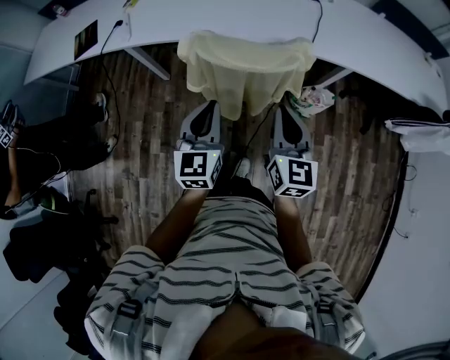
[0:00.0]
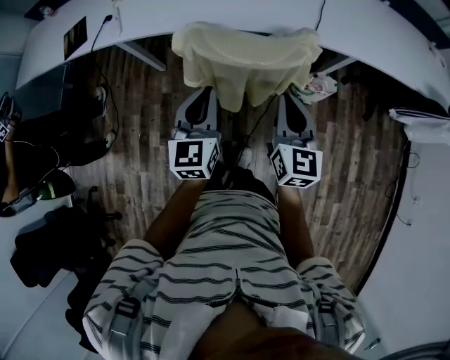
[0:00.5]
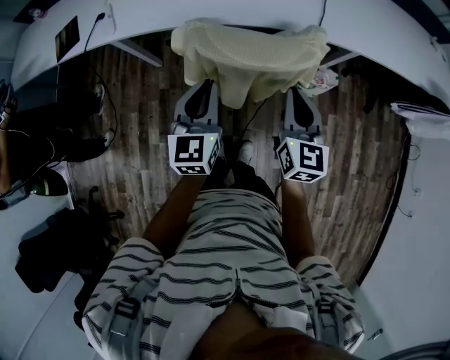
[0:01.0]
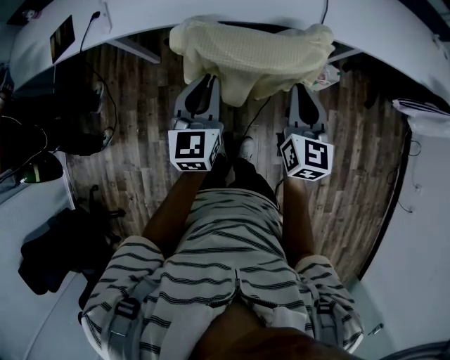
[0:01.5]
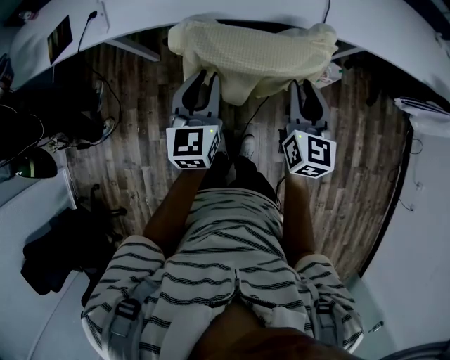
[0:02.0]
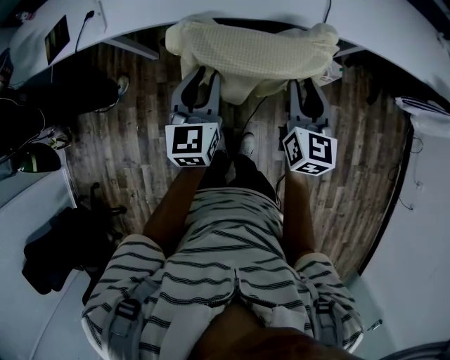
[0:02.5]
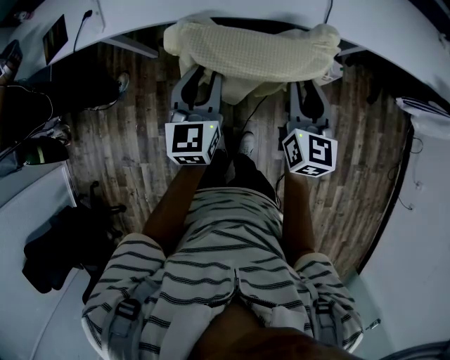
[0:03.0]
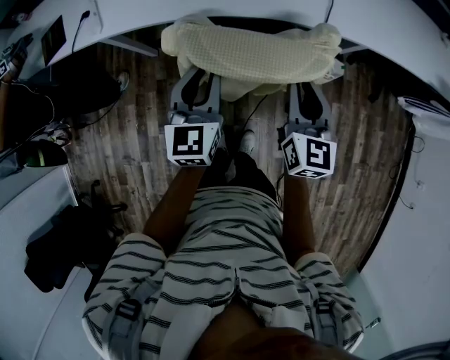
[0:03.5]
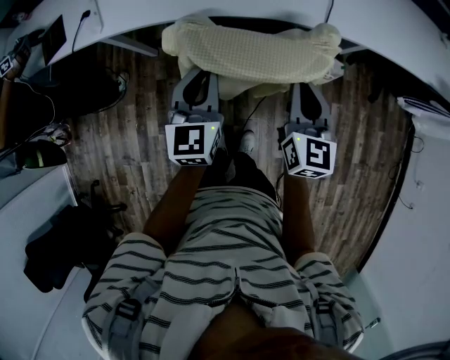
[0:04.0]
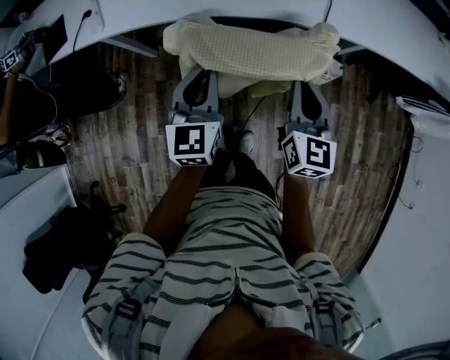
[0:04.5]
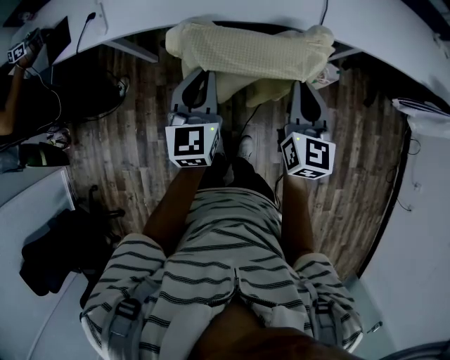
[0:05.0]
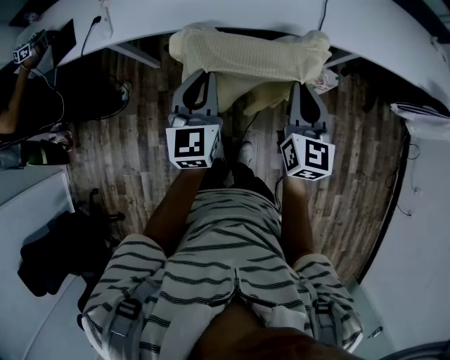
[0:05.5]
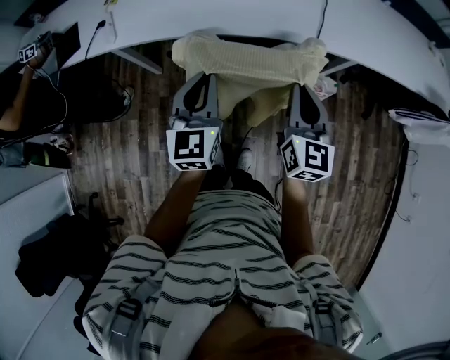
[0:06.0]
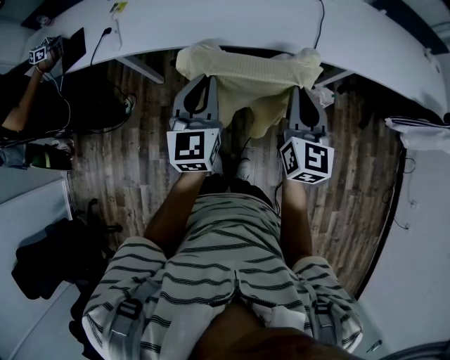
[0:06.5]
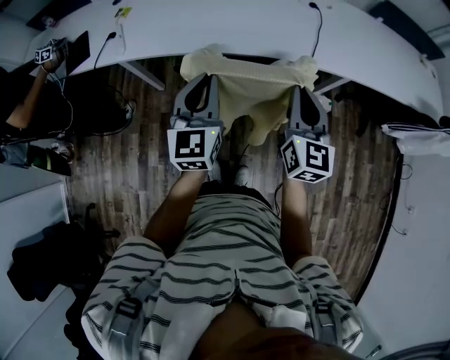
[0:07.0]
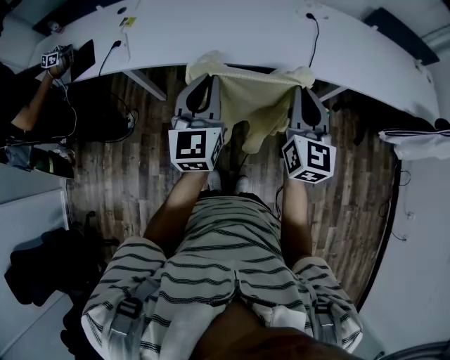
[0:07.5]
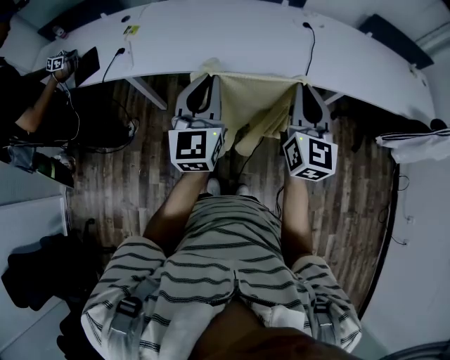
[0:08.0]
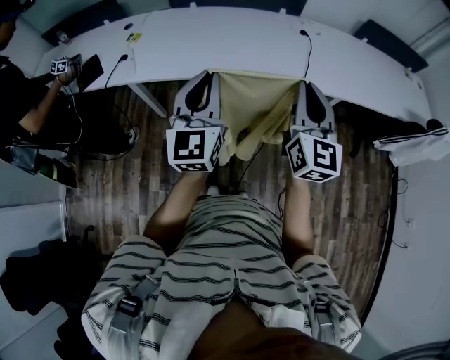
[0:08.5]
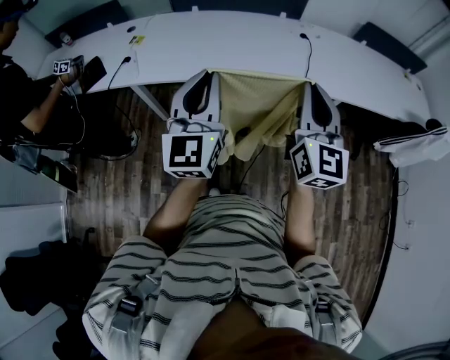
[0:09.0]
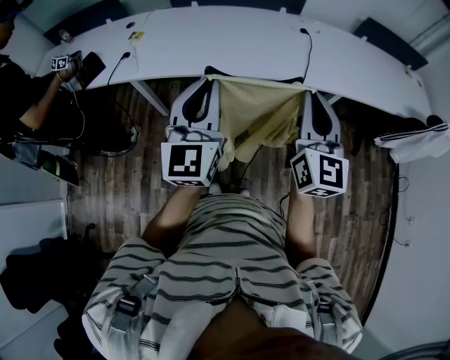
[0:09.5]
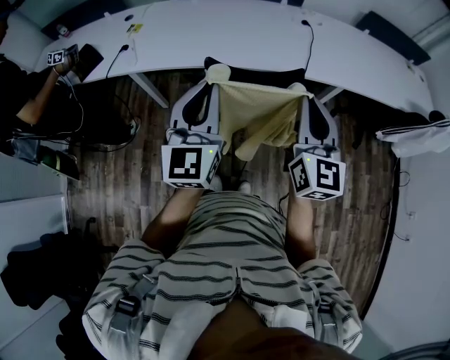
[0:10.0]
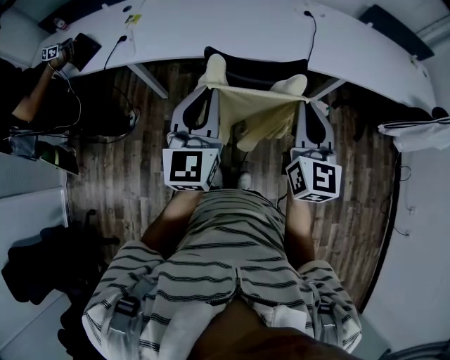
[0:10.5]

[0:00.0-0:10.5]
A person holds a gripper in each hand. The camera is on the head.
0.0 to 2.0 s: The right gripper moves forward and downward, about 10 cm, and opens its fingers. Meanwhile the left gripper moves forward, about 10 cm.
2.0 to 4.0 s: The grippers move only a little.
4.0 to 6.5 s: Both grippers travel together upward, approximately 10 cm.
6.5 to 8.5 s: The two grippers go roughly 15 cm upward.
8.5 to 10.5 s: The right gripper goes approximately 10 cm backward and downward. Meanwhile the left gripper travels backward by roughly 10 cm.

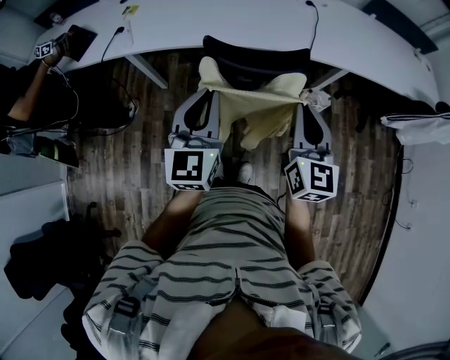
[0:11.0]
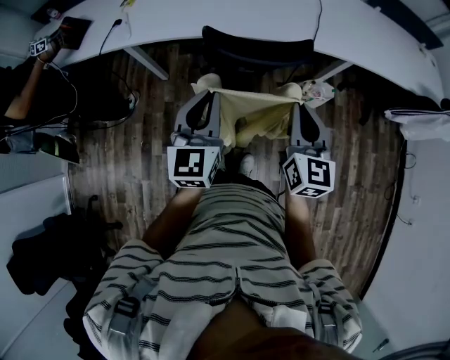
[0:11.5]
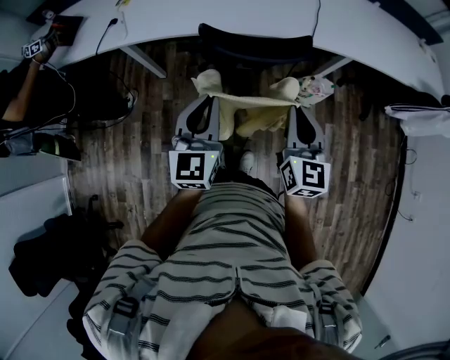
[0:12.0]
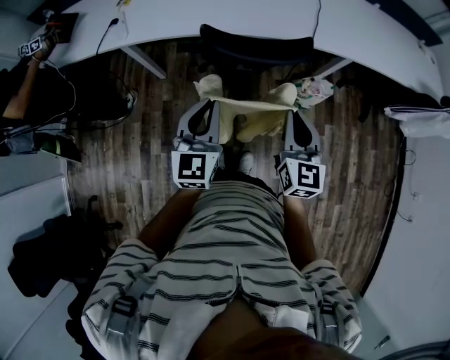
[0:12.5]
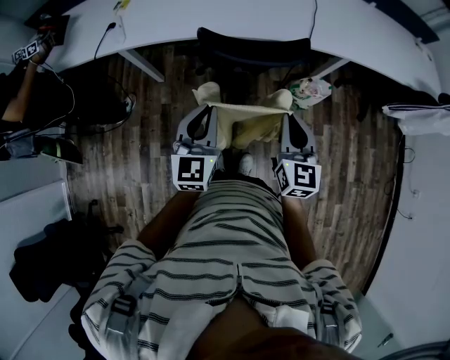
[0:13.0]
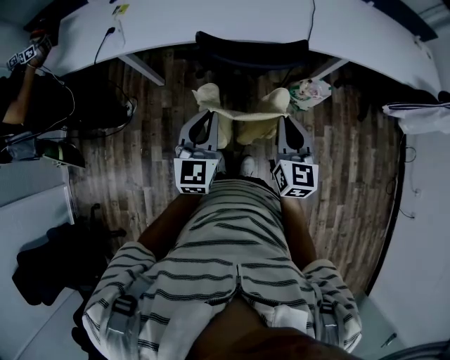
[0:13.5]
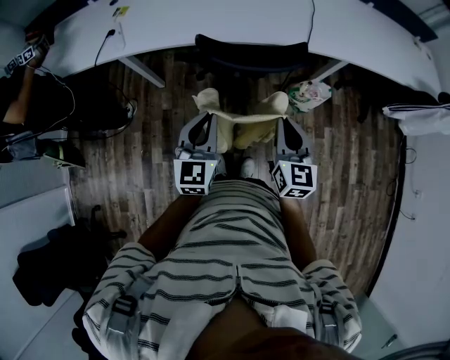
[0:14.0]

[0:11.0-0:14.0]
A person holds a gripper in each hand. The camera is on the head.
11.0 to 12.5 s: Both grippers travel together downward, approximately 10 cm.
12.5 to 14.0 s: The grippers move only a little.

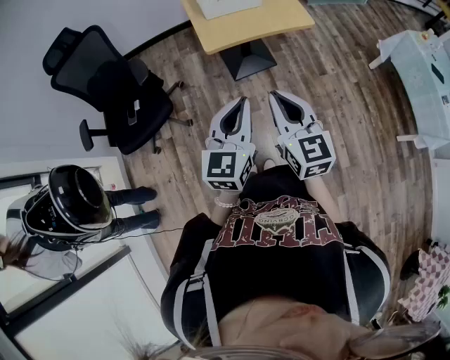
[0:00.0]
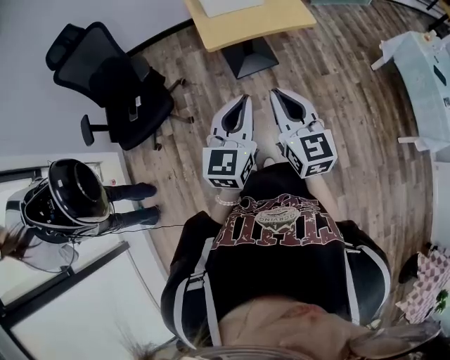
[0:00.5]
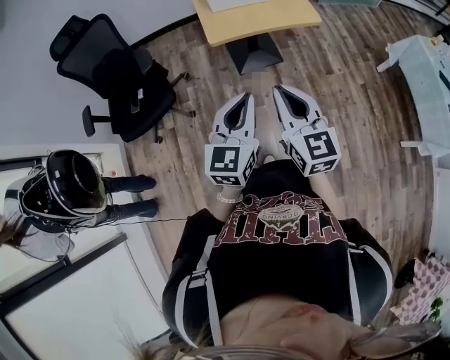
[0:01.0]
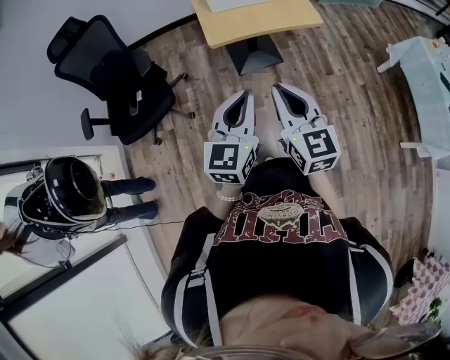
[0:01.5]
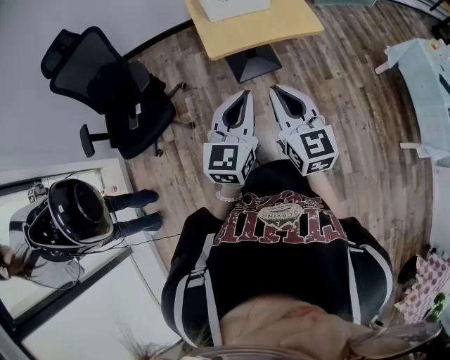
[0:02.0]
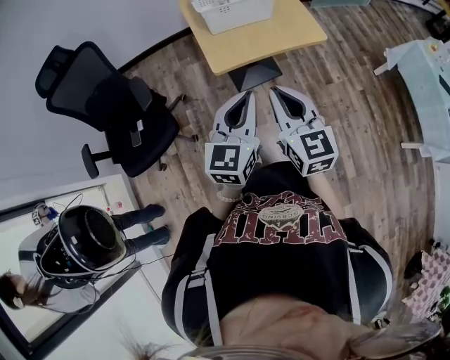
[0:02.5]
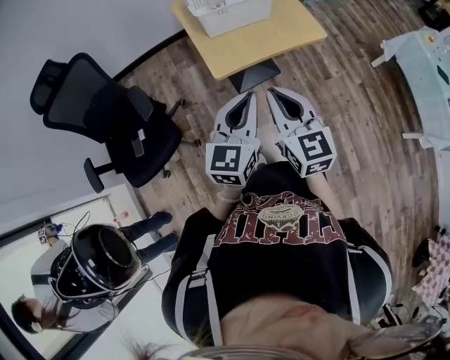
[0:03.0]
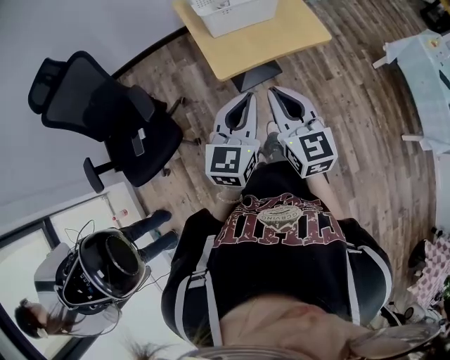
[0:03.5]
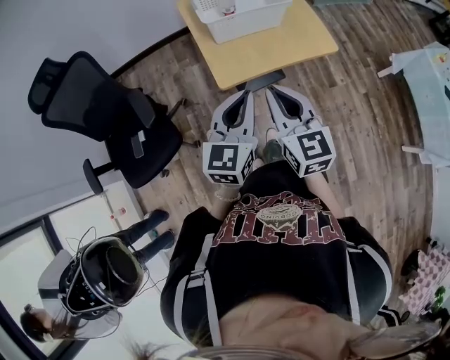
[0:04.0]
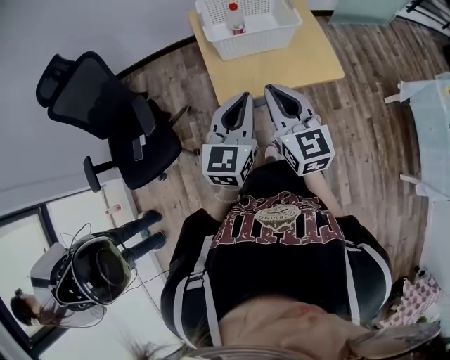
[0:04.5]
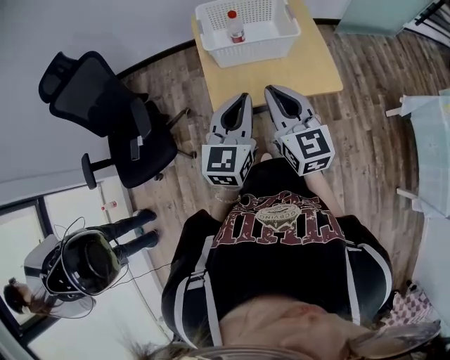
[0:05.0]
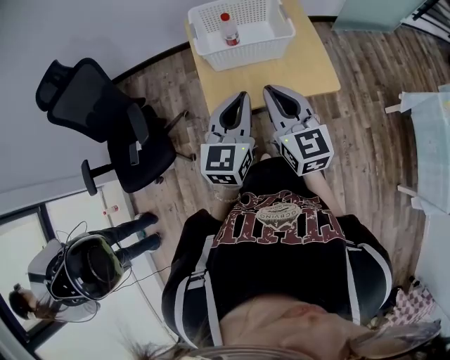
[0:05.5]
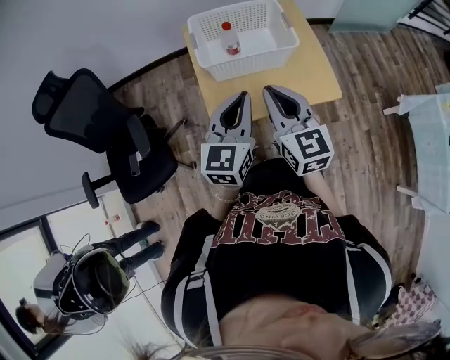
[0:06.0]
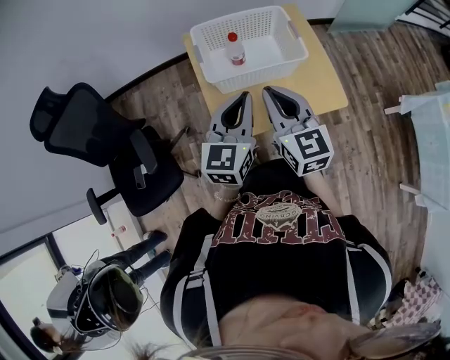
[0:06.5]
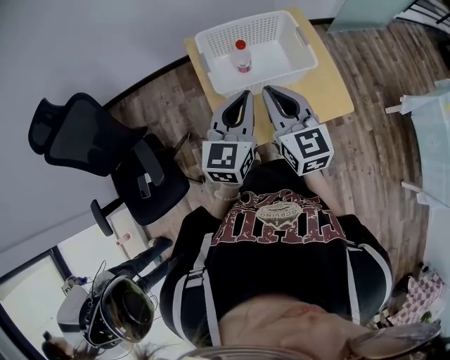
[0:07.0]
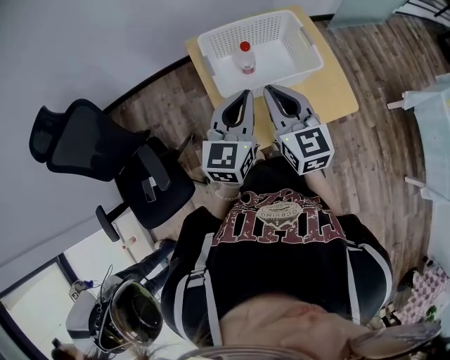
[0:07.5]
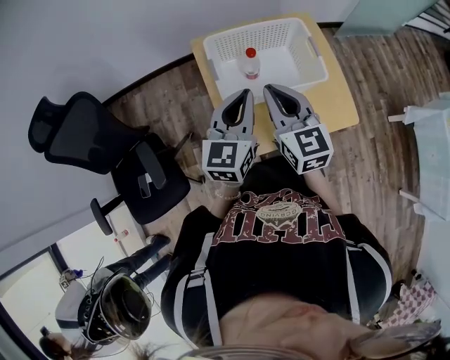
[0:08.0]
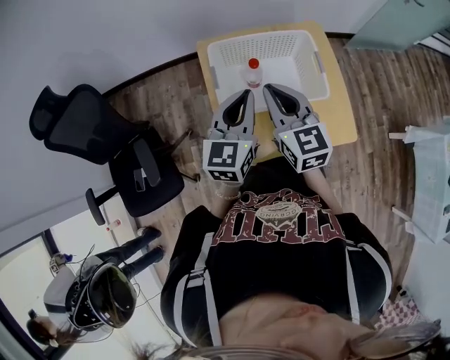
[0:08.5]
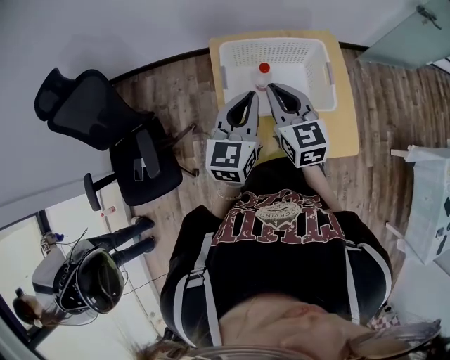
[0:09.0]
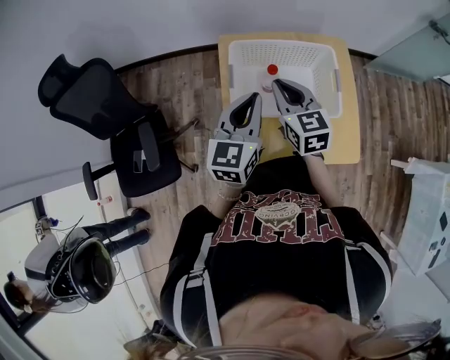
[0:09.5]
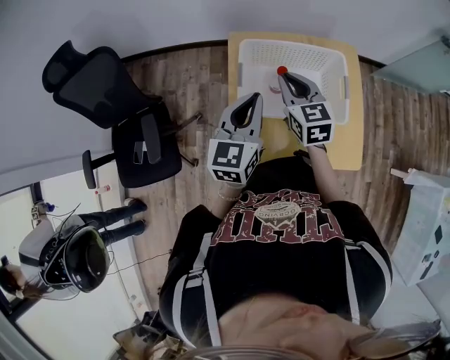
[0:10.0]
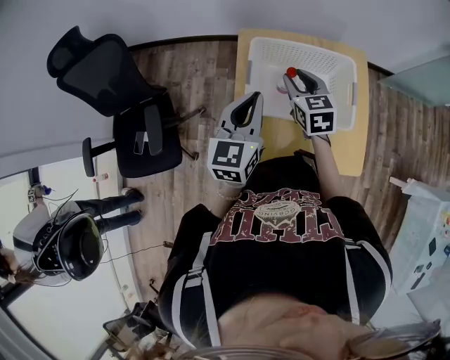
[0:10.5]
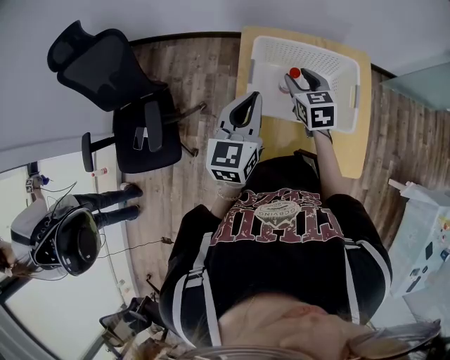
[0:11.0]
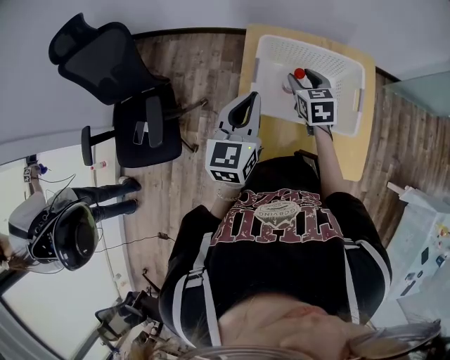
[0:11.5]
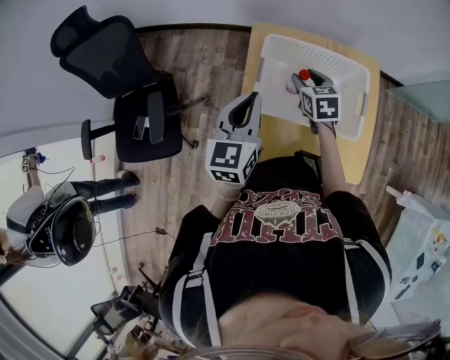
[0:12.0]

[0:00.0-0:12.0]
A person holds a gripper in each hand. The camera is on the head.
0.0 to 2.0 s: The two grippers go about 10 cm forward.
2.0 to 4.0 s: Both grippers travel together forward, approximately 20 cm.
4.0 to 6.0 s: The two grippers go about 15 cm forward.
6.0 to 8.0 s: Both grippers travel together forward and to the left, about 15 cm.
8.0 to 10.0 s: The right gripper travels forward and downward by about 15 cm.
10.0 to 12.0 s: The right gripper moves downward and forward, some 10 cm, and opens its fingers. Meanwhile the left gripper heads to the left, covering about 5 cm.

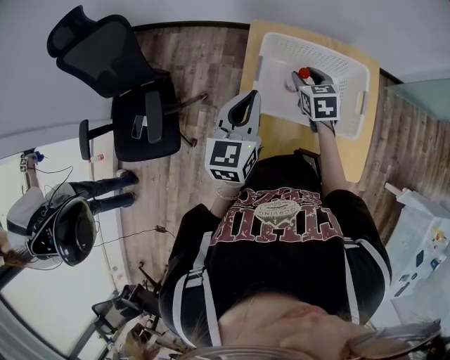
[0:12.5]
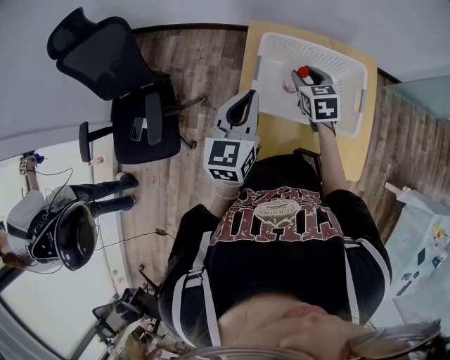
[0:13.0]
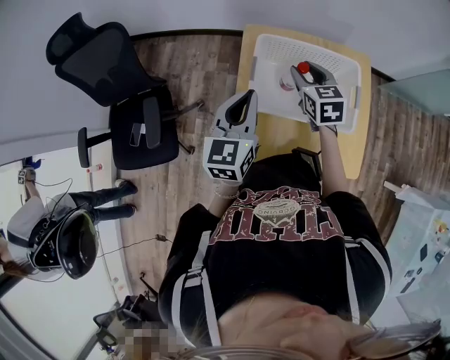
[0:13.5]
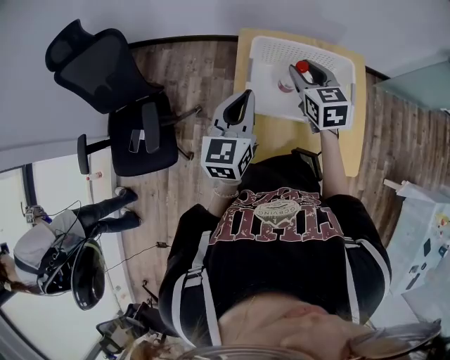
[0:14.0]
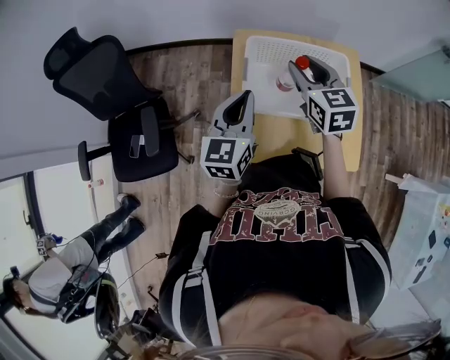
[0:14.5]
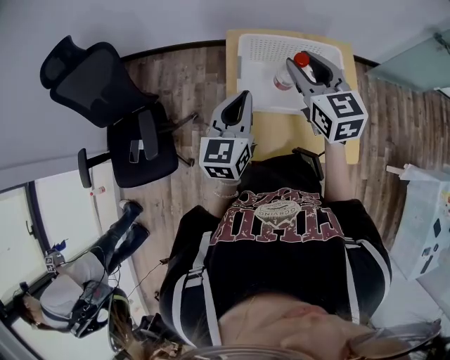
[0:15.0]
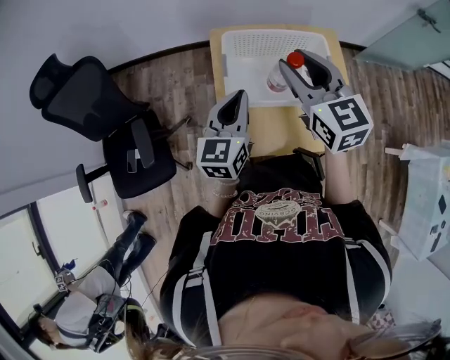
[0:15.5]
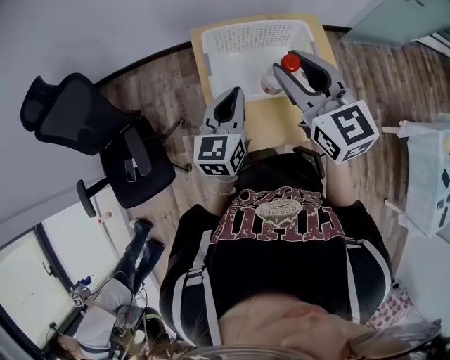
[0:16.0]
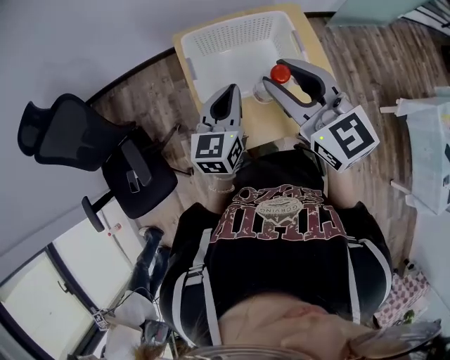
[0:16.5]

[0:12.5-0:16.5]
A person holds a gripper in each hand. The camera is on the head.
12.5 to 14.5 s: The right gripper shifts roughly 15 cm upward, and rotates about 20 degrees.
14.5 to 16.5 s: The left gripper heads to the right, covering about 10 cm, while the right gripper heads backward and upward, covering roughly 15 cm.
